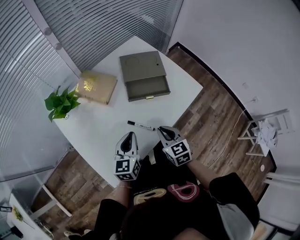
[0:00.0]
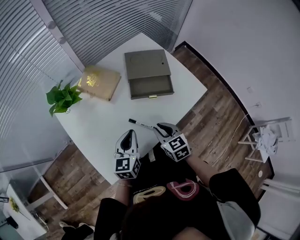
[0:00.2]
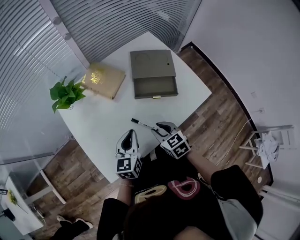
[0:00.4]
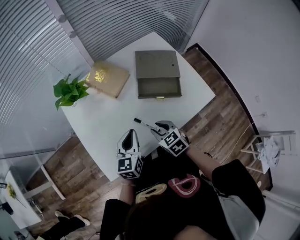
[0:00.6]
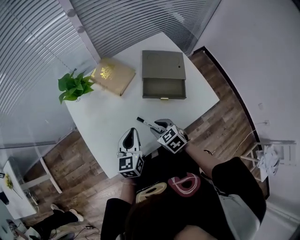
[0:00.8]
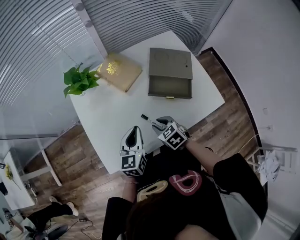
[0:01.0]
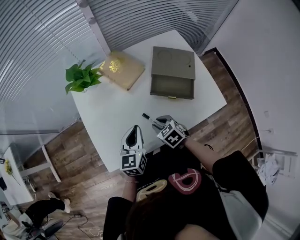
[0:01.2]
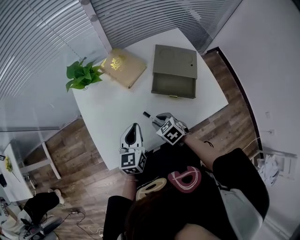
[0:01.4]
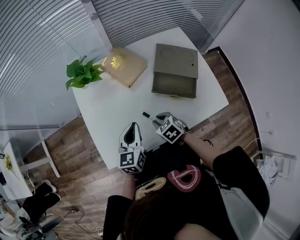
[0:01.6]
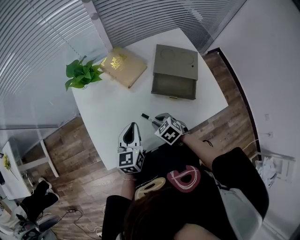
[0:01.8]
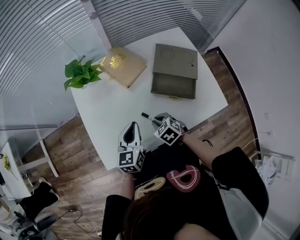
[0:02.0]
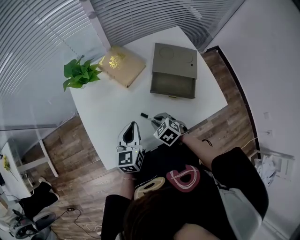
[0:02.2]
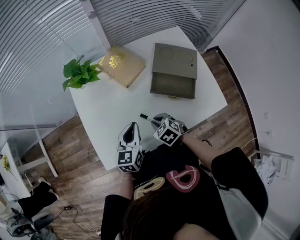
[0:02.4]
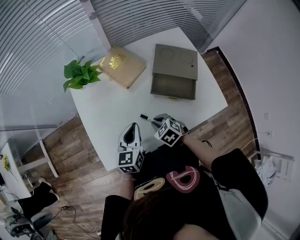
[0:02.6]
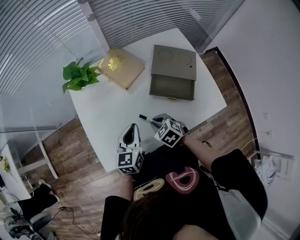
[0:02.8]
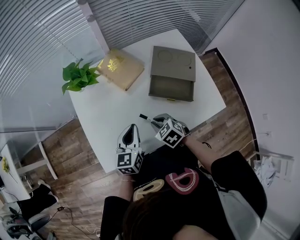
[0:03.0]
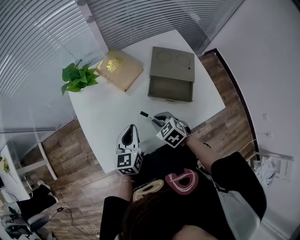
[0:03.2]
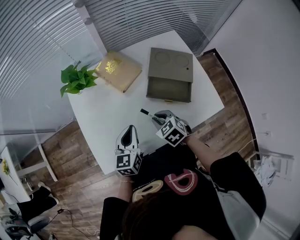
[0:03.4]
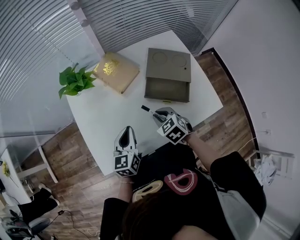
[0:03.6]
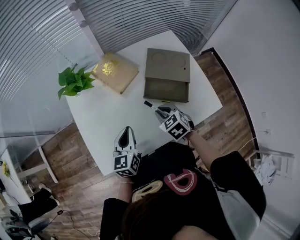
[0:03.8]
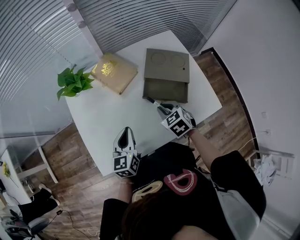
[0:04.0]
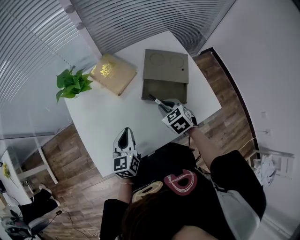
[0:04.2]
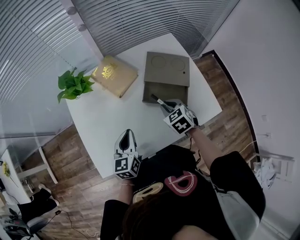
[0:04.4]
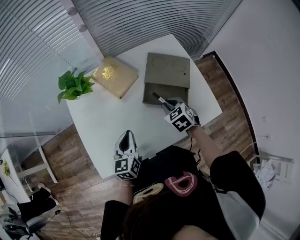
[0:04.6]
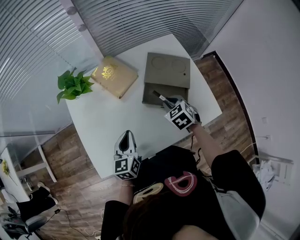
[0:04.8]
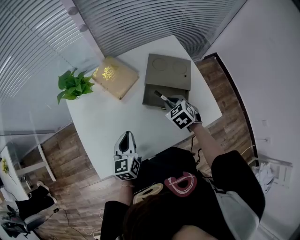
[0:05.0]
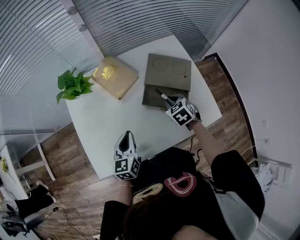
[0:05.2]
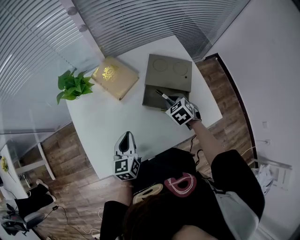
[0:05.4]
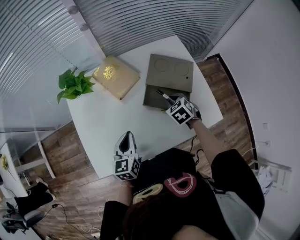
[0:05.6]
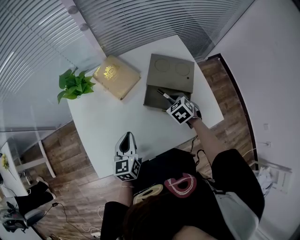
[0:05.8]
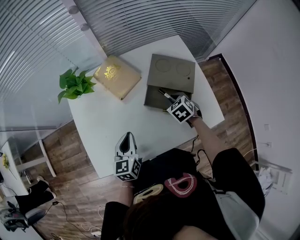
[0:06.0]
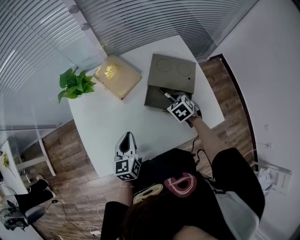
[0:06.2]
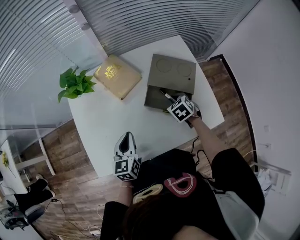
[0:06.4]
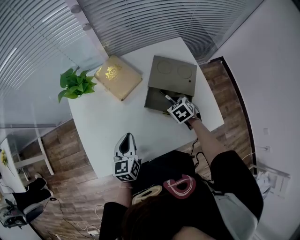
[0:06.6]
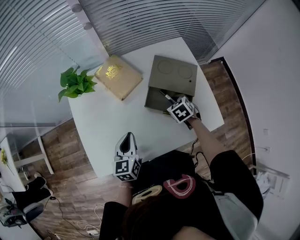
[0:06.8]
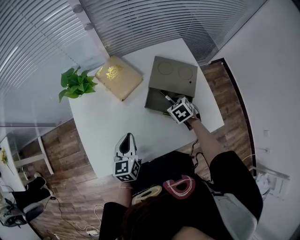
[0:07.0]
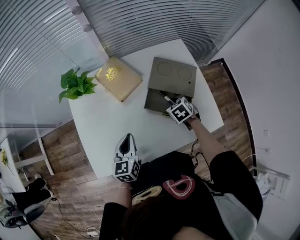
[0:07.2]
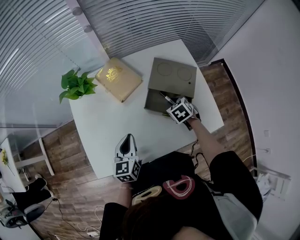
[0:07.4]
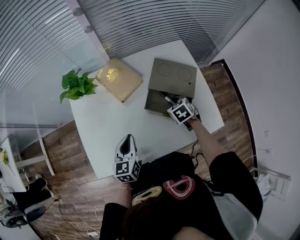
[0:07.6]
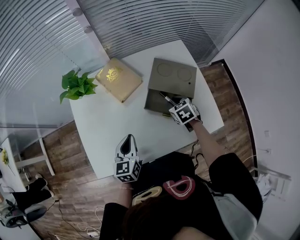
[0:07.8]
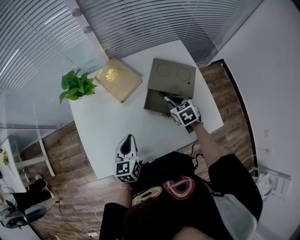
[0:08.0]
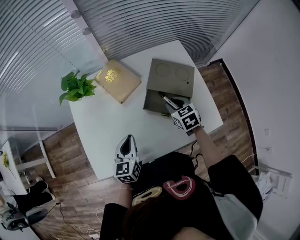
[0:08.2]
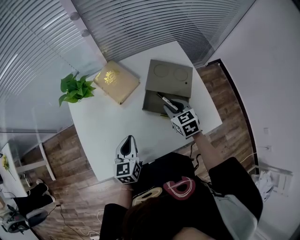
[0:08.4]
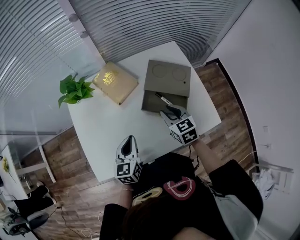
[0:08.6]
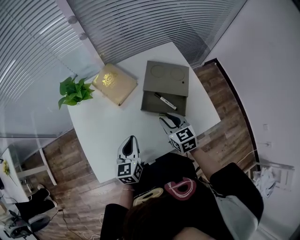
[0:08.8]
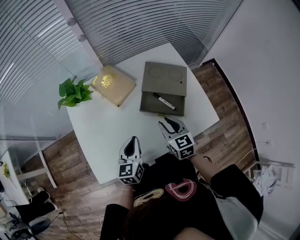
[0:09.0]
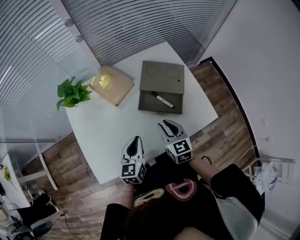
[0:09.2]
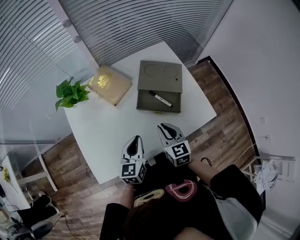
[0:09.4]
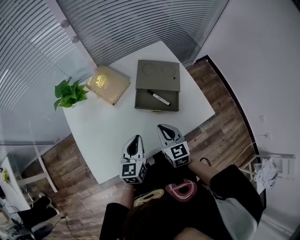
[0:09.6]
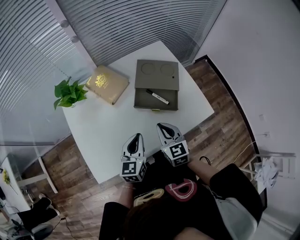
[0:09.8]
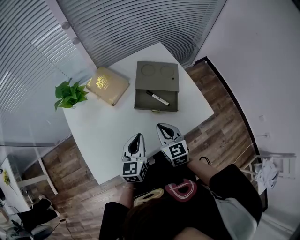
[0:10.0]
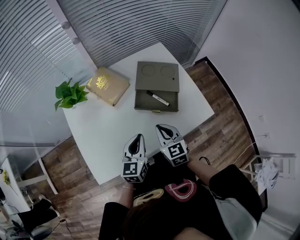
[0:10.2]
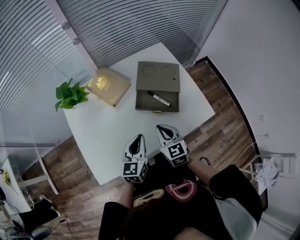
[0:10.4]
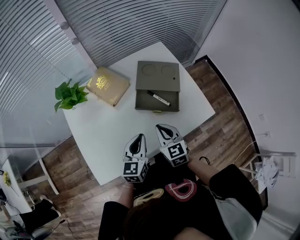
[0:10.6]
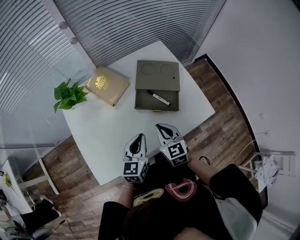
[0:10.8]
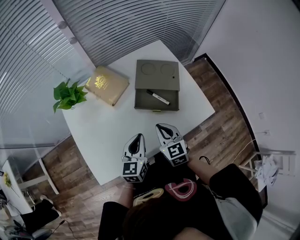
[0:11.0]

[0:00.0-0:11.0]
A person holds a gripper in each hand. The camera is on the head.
0:00.0 to 0:01.6: The right gripper moves about 10 cm, rotates about 50 degrees, and opens up. The left gripper turns by approximately 20 degrees.
0:01.6 to 0:03.2: There are only small adjustments of the grippers.
0:03.2 to 0:04.8: The right gripper heads to the right and forward, covering about 15 cm.
0:04.8 to 0:06.2: The right gripper goes roughly 5 cm downward.
0:06.2 to 0:07.8: The grippers move only a little.
0:07.8 to 0:09.4: The left gripper shifts some 5 cm to the right, while the right gripper travels backward, upward and to the left by roughly 15 cm, and angles its fingers upward, by approximately 30 degrees.
0:09.4 to 0:11.0: The grippers move only a little.

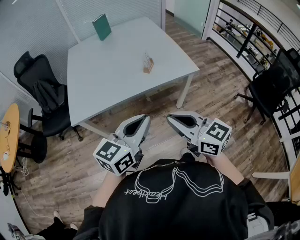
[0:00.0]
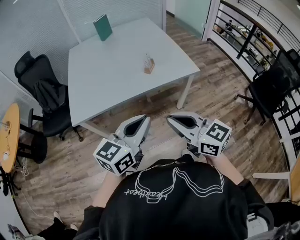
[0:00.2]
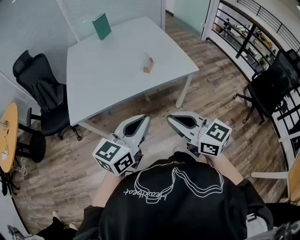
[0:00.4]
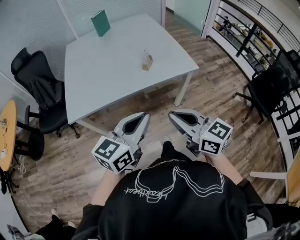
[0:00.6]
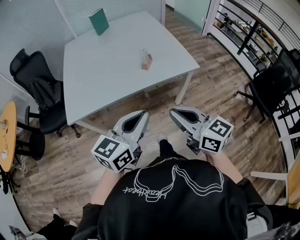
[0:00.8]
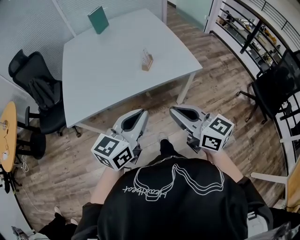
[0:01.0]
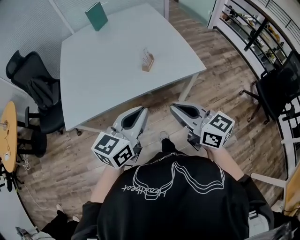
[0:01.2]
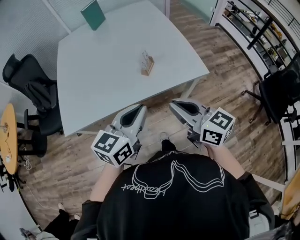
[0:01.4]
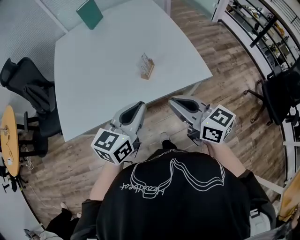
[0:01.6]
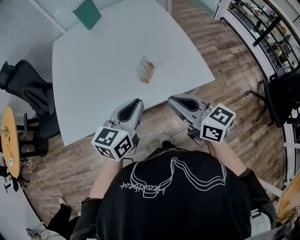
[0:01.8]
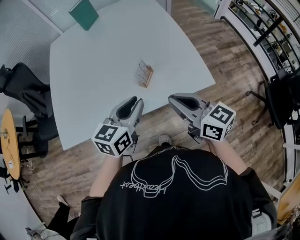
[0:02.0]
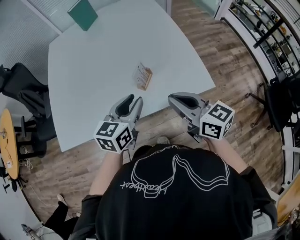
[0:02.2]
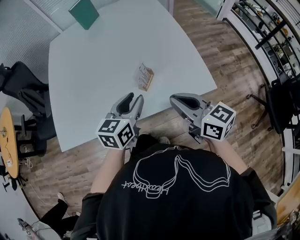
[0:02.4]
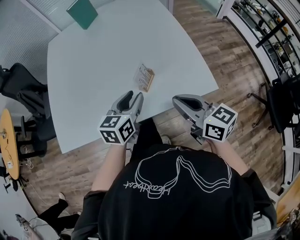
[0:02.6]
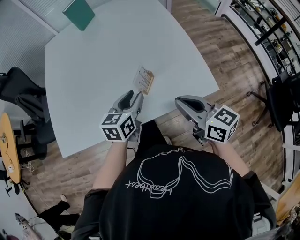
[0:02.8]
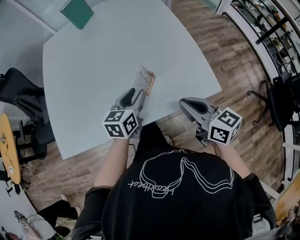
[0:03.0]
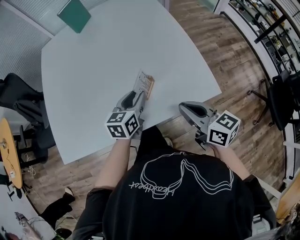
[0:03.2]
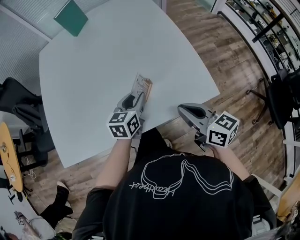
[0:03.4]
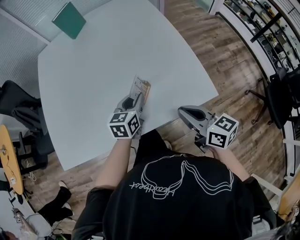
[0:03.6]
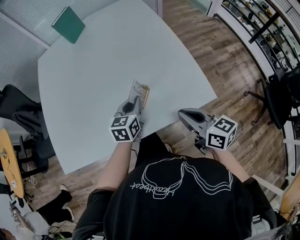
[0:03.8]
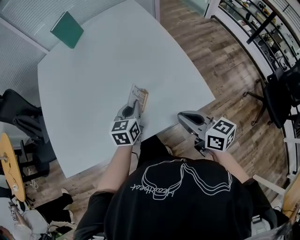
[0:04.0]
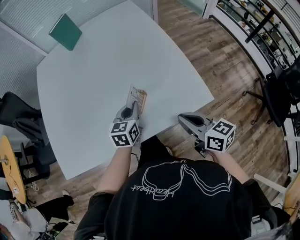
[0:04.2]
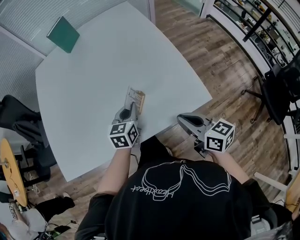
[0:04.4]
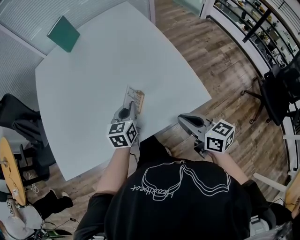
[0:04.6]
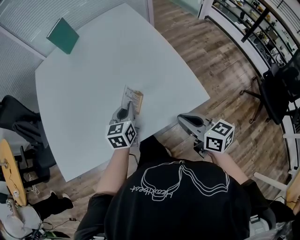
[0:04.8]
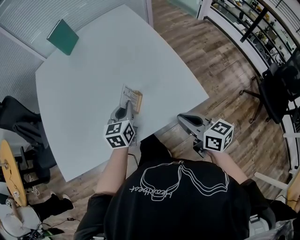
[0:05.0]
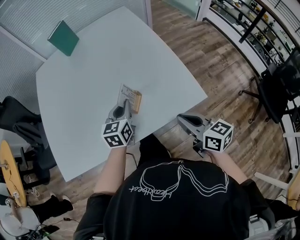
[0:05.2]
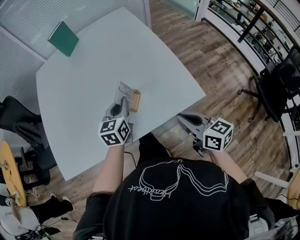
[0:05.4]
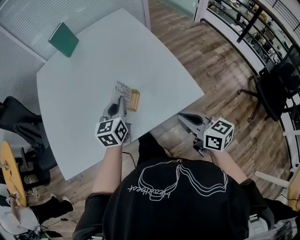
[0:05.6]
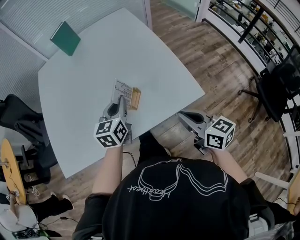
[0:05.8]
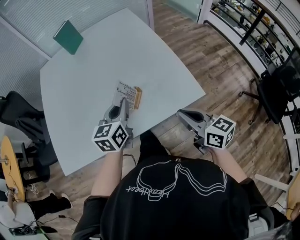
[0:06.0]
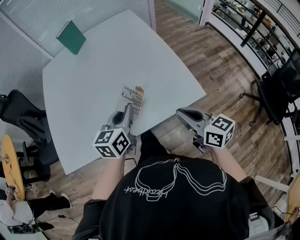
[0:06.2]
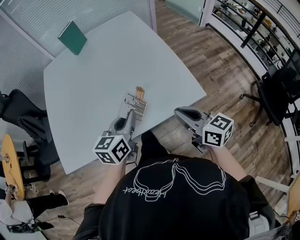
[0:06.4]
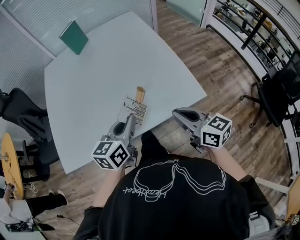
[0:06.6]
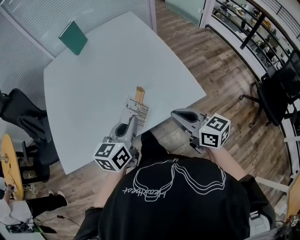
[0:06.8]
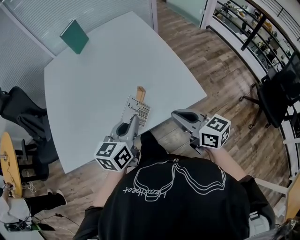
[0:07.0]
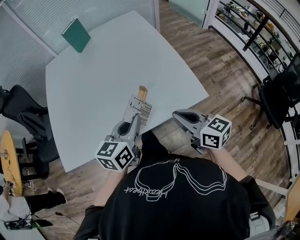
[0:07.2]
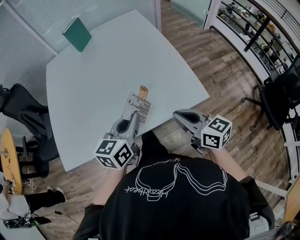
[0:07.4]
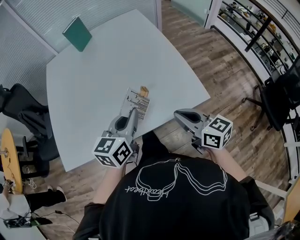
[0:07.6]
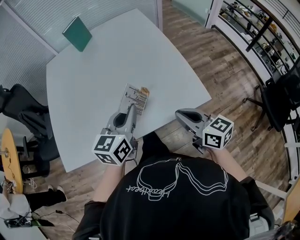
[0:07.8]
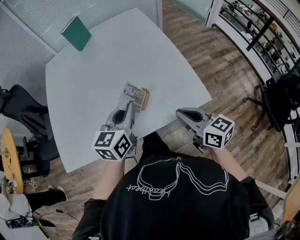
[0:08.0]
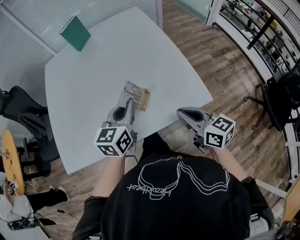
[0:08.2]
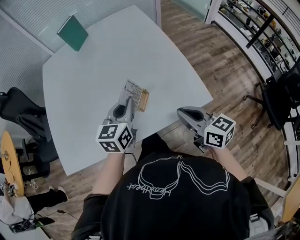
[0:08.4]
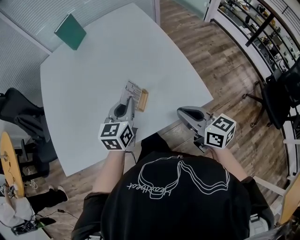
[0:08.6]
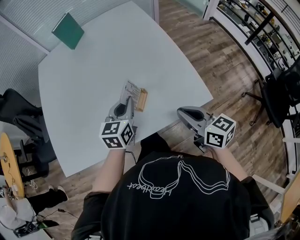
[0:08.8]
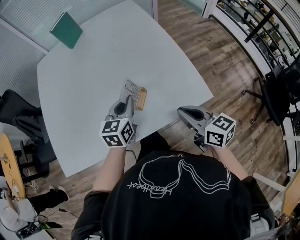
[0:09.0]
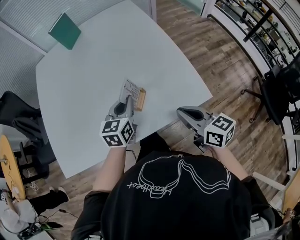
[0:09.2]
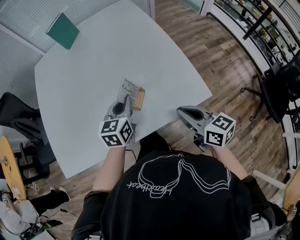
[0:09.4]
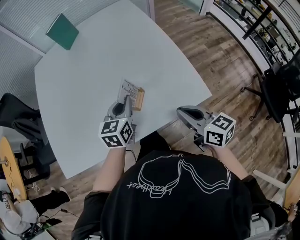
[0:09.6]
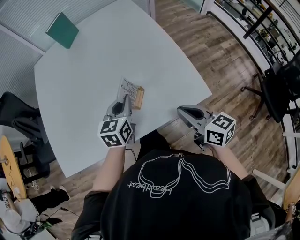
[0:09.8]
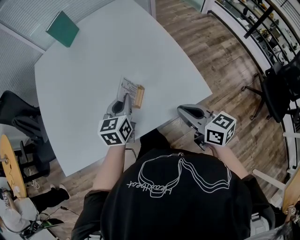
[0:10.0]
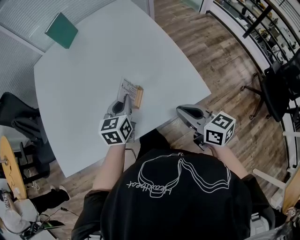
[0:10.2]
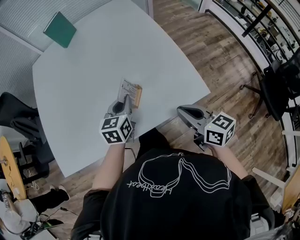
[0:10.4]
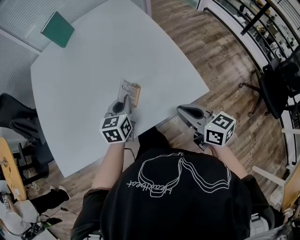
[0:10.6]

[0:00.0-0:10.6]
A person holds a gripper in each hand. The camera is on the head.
0:00.0 to 0:01.6: Both grippers travel together forward, about 25 cm.
0:01.6 to 0:03.0: The right gripper goes roughly 15 cm forward, downward and to the right. Meanwhile the left gripper heads forward and downward, covering some 25 cm, and opens its fingers.
0:03.0 to 0:04.6: The right gripper ends up some 5 cm from where it was, while the left gripper closes.
0:04.6 to 0:06.0: The left gripper shifts some 10 cm upward. Meanwhile the right gripper moves about 5 cm.
0:06.0 to 0:07.6: The left gripper goes roughly 5 cm backward.
0:07.6 to 0:09.0: The right gripper changes place by about 5 cm, while the left gripper goes roughly 15 cm forward and downward.
0:09.0 to 0:10.6: The grippers make only small movements.

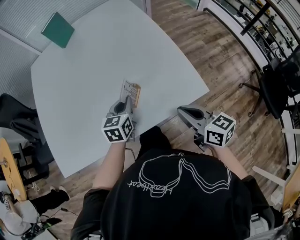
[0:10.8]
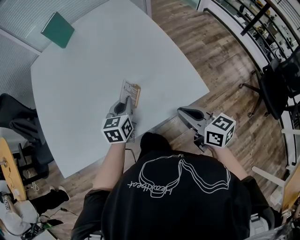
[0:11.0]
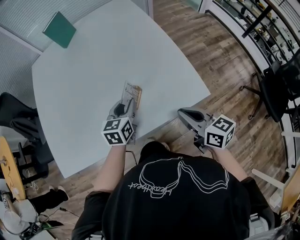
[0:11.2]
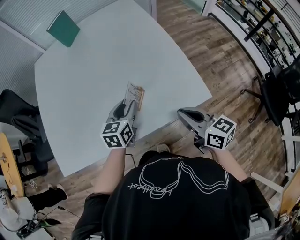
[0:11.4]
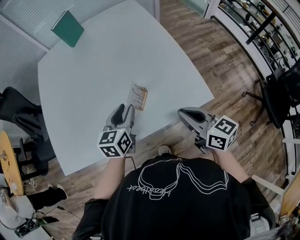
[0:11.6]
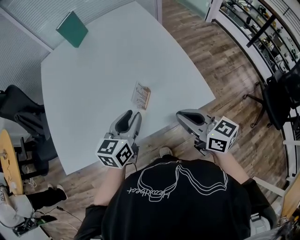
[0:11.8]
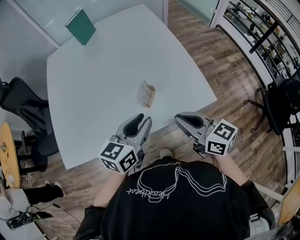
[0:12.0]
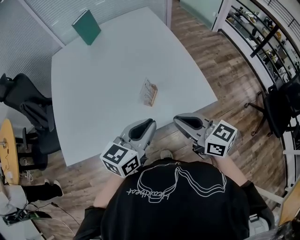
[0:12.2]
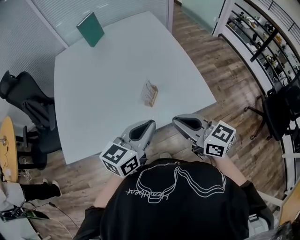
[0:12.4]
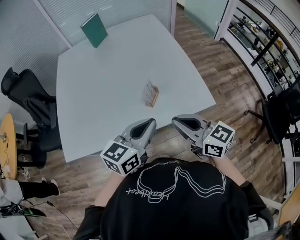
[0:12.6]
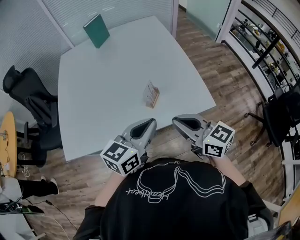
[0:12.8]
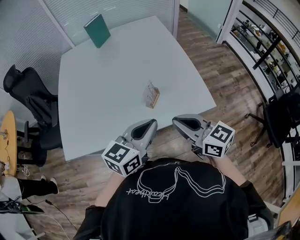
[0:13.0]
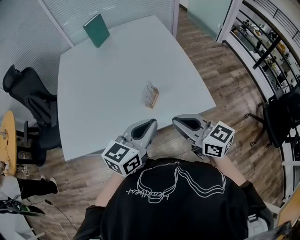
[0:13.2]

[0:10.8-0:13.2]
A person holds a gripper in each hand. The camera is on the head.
0:10.8 to 0:12.0: The left gripper is displaced upward and backward by some 20 cm, and opens. Meanwhile the right gripper is displaced to the left and upward by roughly 10 cm.
0:12.0 to 0:13.2: The right gripper shifts by some 5 cm. The left gripper moves backward, some 5 cm, and closes its fingers.
